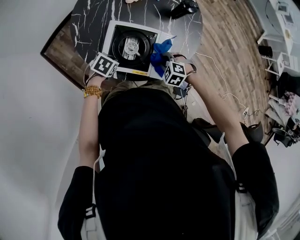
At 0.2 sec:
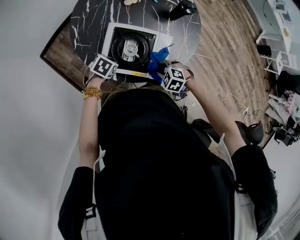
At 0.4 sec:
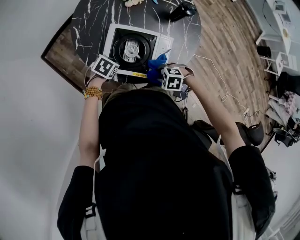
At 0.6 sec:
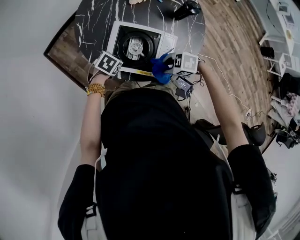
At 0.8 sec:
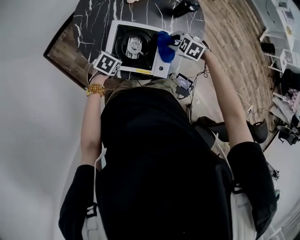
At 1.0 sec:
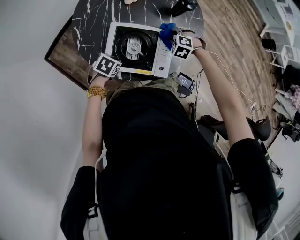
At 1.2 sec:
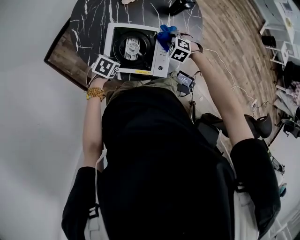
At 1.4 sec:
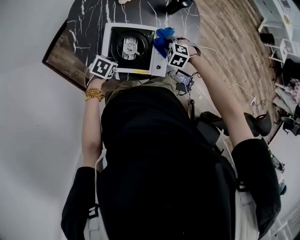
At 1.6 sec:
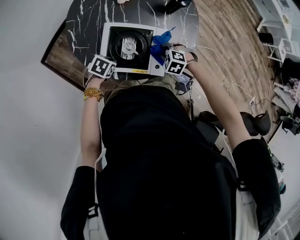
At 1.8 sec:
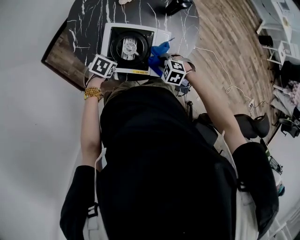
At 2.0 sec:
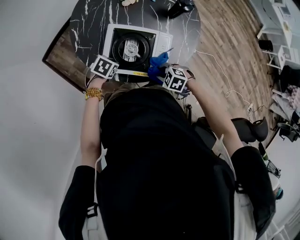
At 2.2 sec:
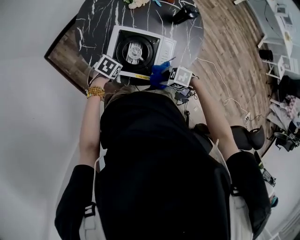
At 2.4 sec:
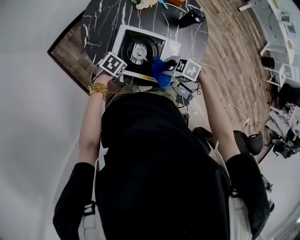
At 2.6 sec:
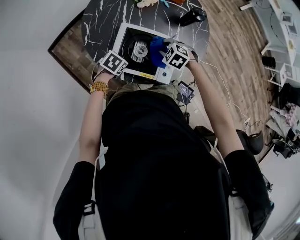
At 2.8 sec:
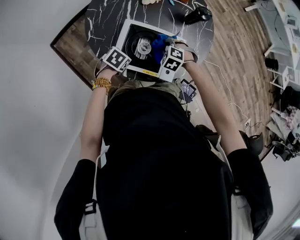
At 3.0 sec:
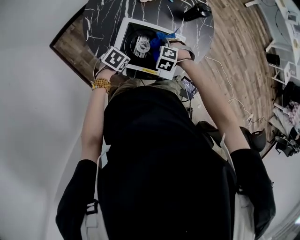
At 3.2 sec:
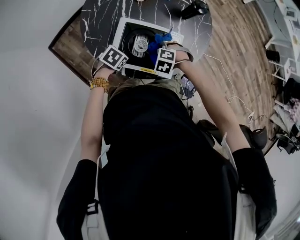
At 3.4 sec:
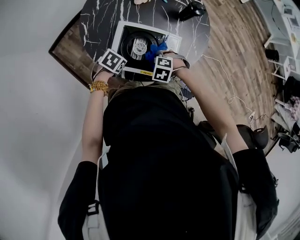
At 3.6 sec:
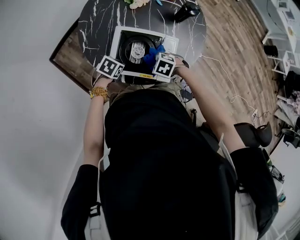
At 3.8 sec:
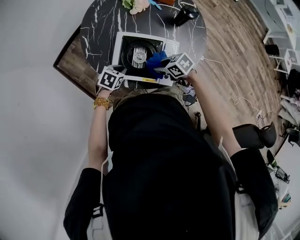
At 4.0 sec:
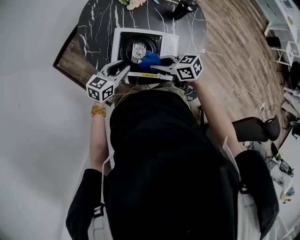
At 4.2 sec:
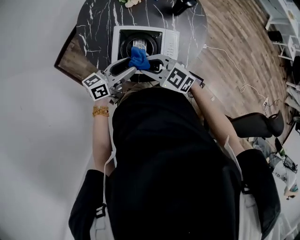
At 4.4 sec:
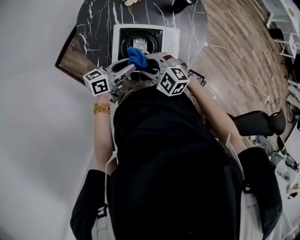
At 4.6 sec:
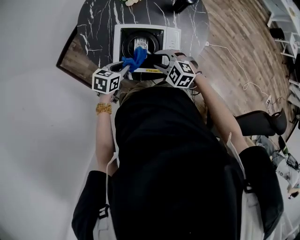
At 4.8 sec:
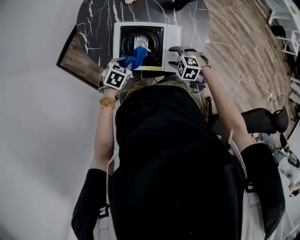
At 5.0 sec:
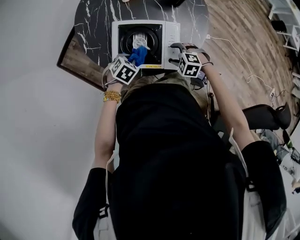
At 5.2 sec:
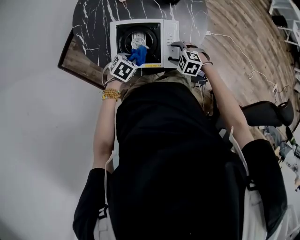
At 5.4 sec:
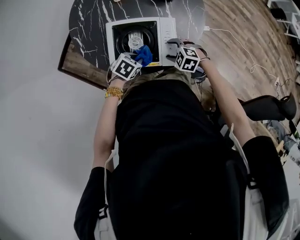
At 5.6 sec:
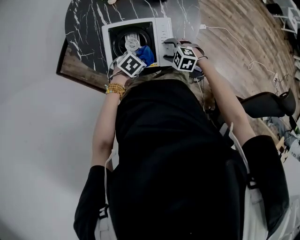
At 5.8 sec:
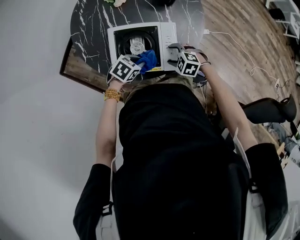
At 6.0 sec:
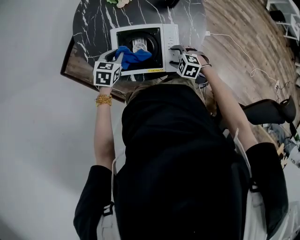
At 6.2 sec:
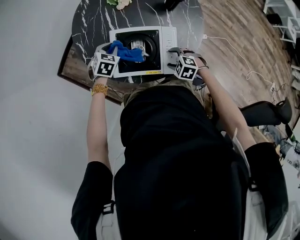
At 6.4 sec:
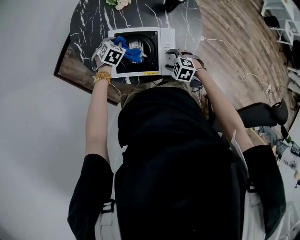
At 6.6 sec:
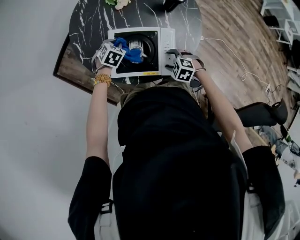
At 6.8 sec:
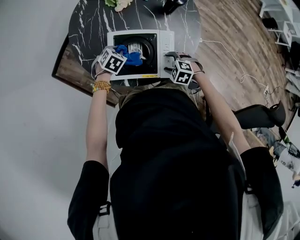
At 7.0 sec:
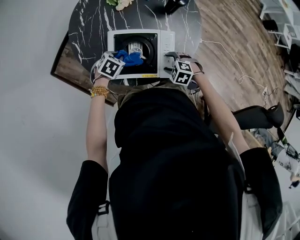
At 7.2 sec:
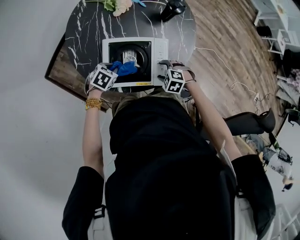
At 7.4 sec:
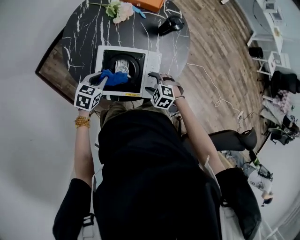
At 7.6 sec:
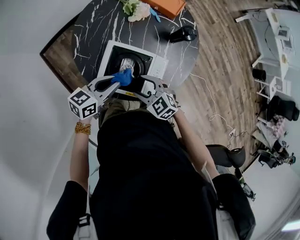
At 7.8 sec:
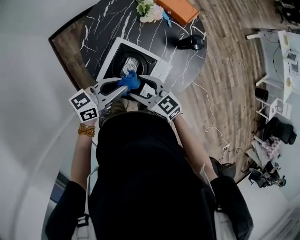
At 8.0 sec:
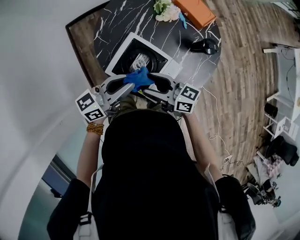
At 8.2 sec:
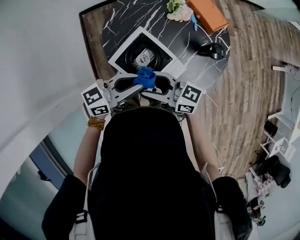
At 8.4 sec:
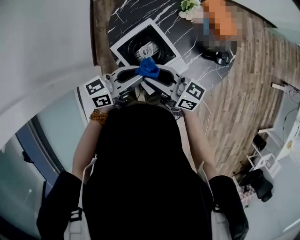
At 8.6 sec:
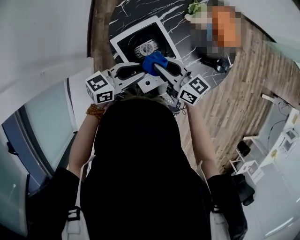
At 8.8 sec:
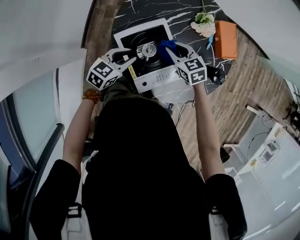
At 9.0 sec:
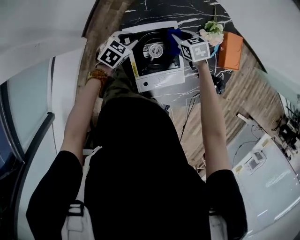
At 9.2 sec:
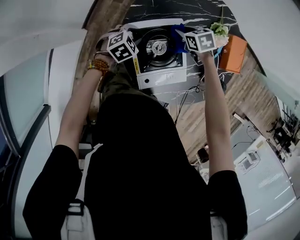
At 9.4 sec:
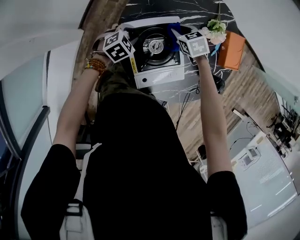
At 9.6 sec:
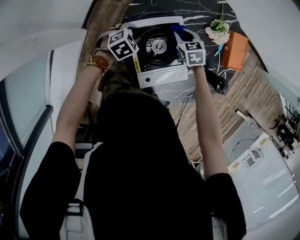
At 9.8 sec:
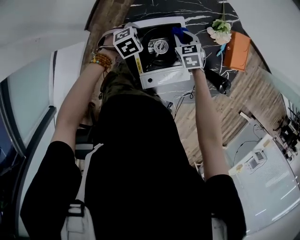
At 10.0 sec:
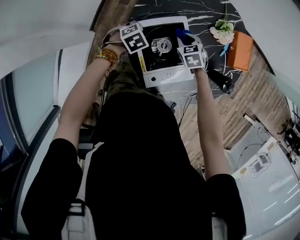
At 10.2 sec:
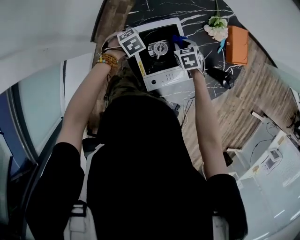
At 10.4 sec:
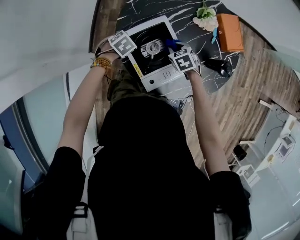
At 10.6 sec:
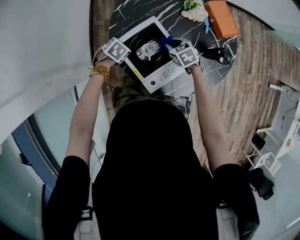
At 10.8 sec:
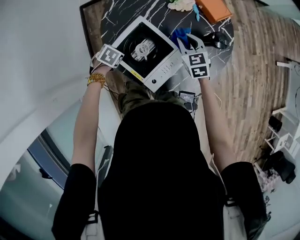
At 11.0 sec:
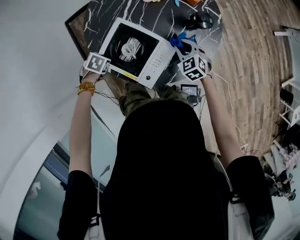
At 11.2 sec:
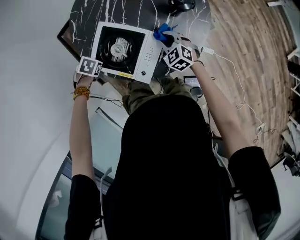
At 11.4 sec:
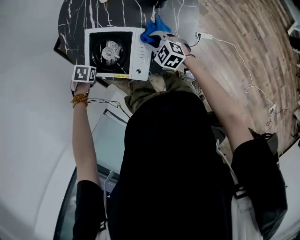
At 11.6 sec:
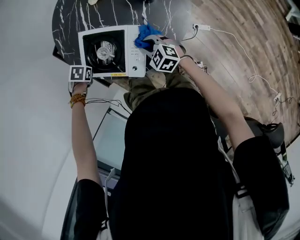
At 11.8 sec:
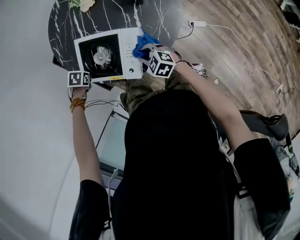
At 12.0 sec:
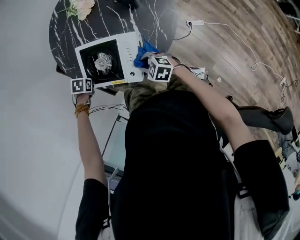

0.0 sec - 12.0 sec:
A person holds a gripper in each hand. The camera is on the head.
1.6 sec - 3.0 sec: The right gripper changes place by roughly 10 cm.
3.0 sec - 4.4 sec: Both grippers move upward, about 15 cm. The right gripper points its fingers about 40 degrees further upward; the left gripper points its fingers some 60 degrees further upward, and opens its fingers.
4.4 sec - 6.0 sec: The left gripper shifts by roughly 10 cm, and points its fingers about 40 degrees further downward. The right gripper shifts by approximately 20 cm, changes its angle by approximately 30 degrees, and opens up.
6.0 sec - 7.6 sec: Both grippers travel together upward, roughly 10 cm. The right gripper swivels roughly 20 degrees; the left gripper points its fingers roughly 30 degrees further upward.
7.6 sec - 9.0 sec: The right gripper moves roughly 20 cm, rotates approximately 40 degrees, and closes, while the left gripper travels downward by about 15 cm, and turns by roughly 60 degrees.
9.0 sec - 10.4 sec: The right gripper travels backward by about 10 cm; the left gripper turns by about 40 degrees.
10.4 sec - 12.0 sec: The left gripper changes its angle by roughly 30 degrees. Meanwhile the right gripper moves about 10 cm upward and comes back, and swivels roughly 30 degrees.

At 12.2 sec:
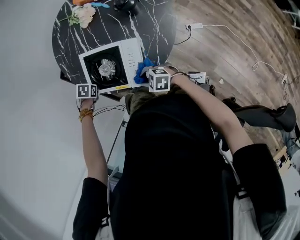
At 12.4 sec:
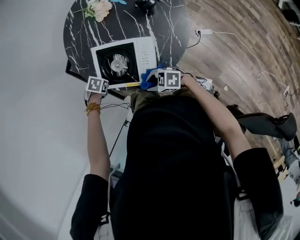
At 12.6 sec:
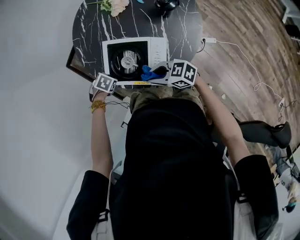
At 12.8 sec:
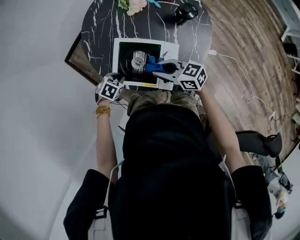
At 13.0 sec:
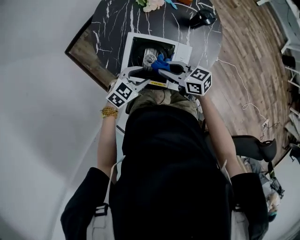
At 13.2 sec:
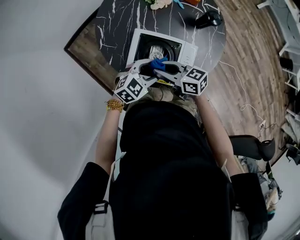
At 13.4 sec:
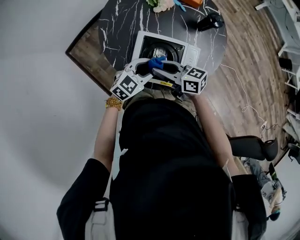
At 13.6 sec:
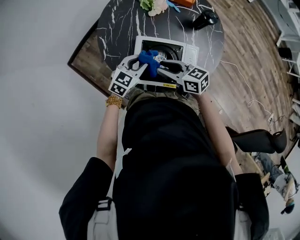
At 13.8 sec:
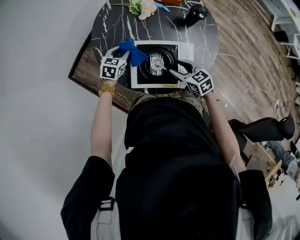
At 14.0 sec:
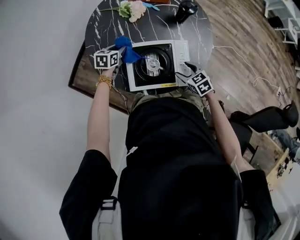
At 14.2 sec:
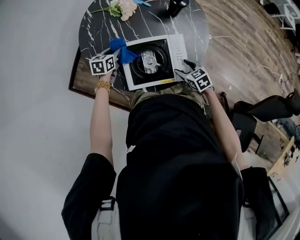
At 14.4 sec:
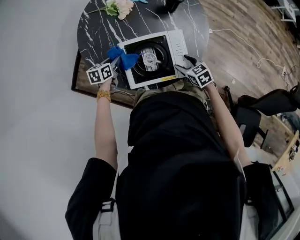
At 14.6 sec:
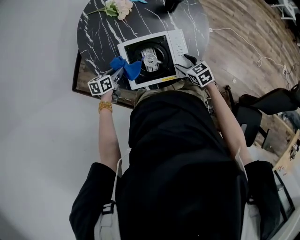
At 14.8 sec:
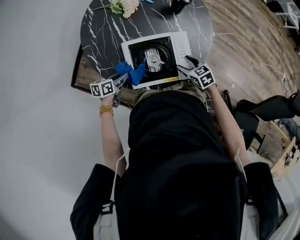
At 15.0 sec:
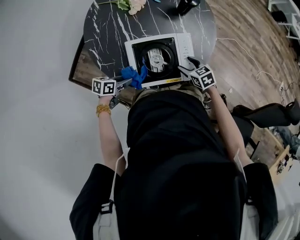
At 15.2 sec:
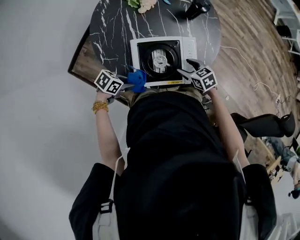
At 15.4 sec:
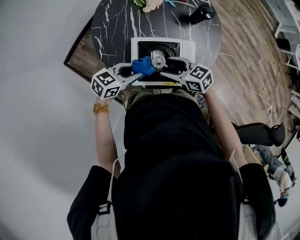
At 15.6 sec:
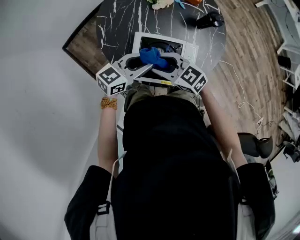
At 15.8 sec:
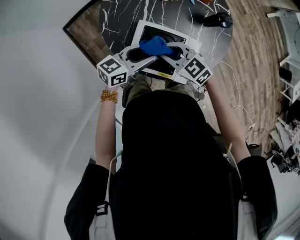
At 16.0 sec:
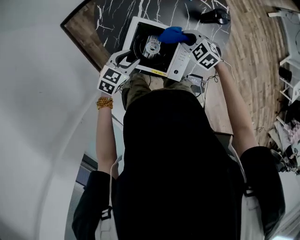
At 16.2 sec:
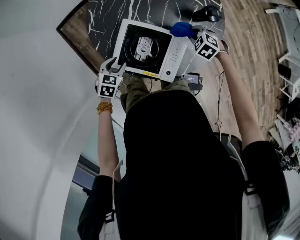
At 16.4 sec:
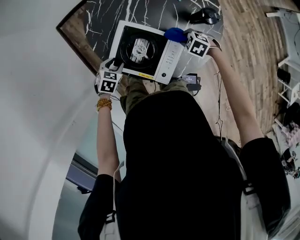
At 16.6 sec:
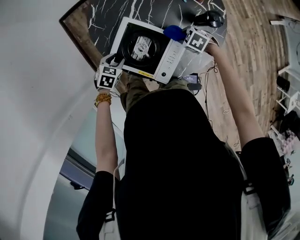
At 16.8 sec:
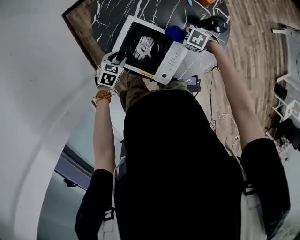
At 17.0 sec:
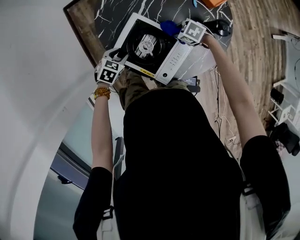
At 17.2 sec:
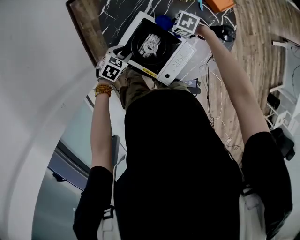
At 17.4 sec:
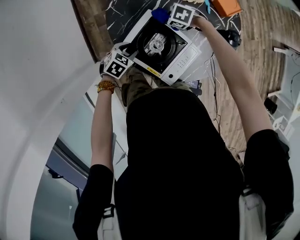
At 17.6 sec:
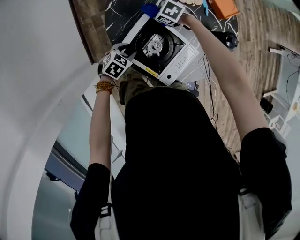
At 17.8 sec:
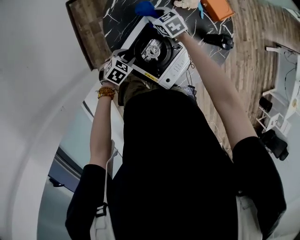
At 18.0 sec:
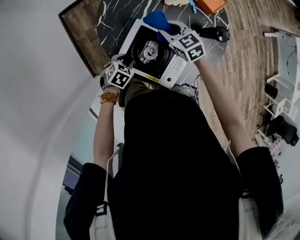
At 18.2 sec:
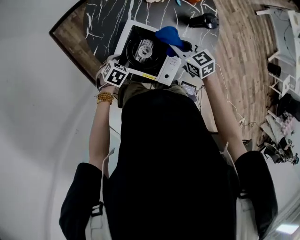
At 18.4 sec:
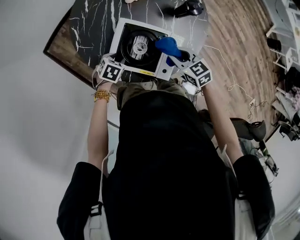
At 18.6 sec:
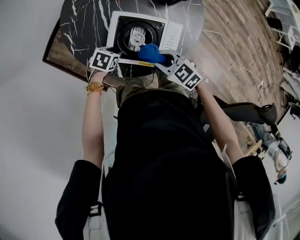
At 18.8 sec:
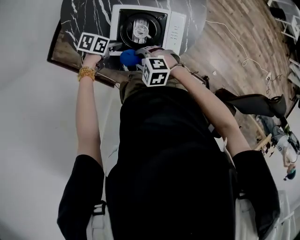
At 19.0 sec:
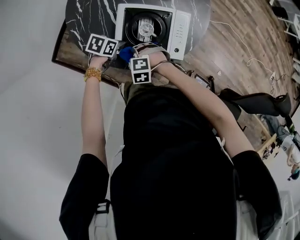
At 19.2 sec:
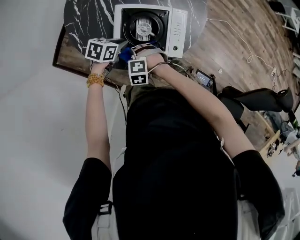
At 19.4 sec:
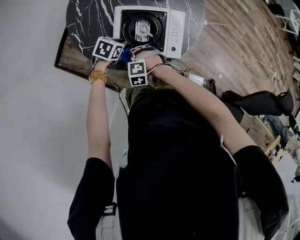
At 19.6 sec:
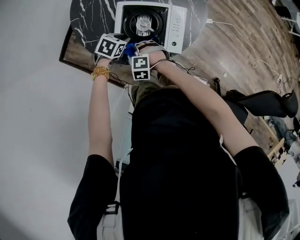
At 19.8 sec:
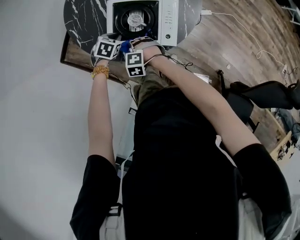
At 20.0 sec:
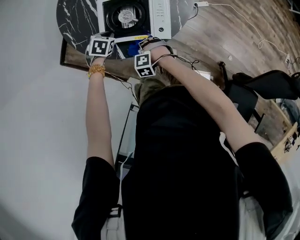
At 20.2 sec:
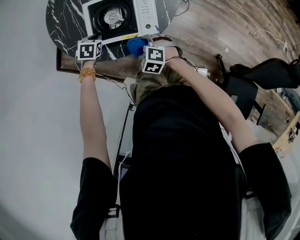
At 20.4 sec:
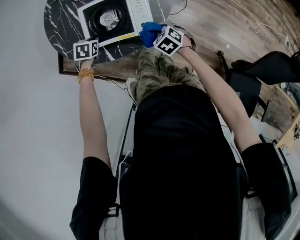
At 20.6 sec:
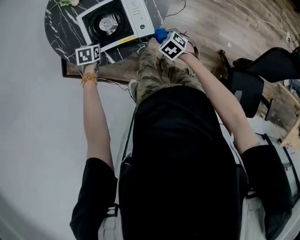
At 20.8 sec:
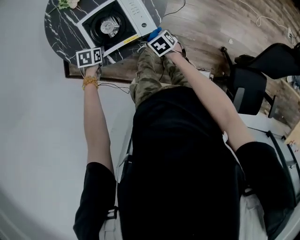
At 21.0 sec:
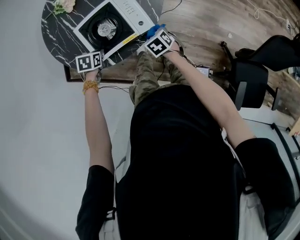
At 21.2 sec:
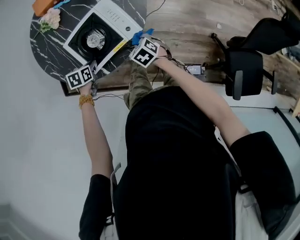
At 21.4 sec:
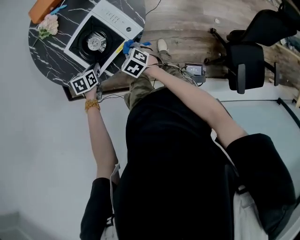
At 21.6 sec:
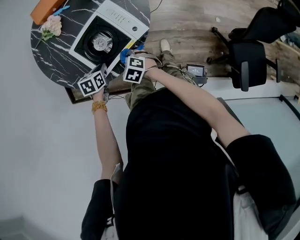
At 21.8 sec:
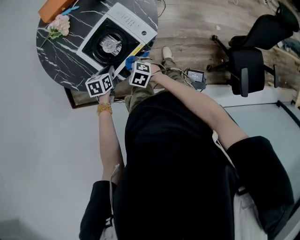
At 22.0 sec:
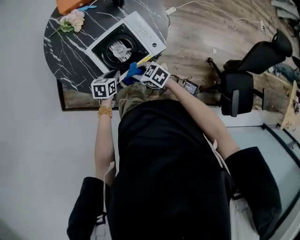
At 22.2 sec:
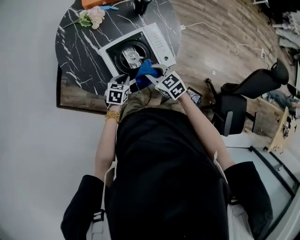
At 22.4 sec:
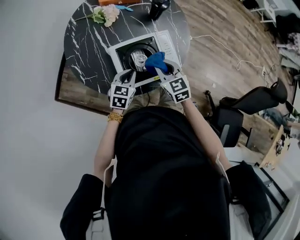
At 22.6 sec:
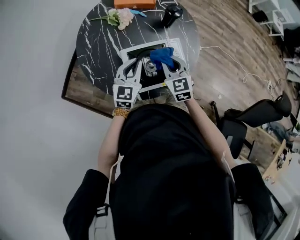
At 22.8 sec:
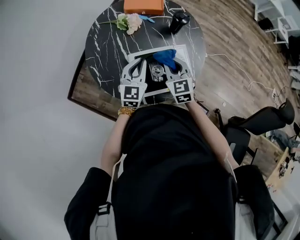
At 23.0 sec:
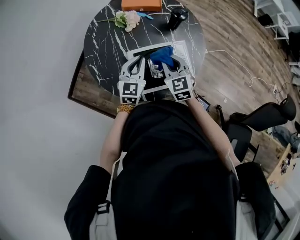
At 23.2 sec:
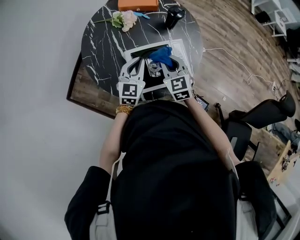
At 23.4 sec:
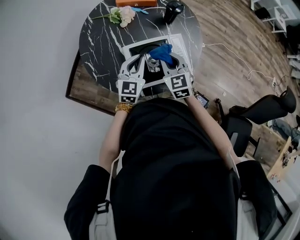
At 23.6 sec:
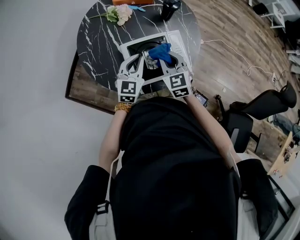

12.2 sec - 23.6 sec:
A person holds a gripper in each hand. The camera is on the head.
12.2 sec - 13.6 sec: The left gripper is displaced upward by roughly 10 cm, angles its fingers upward, by approximately 50 degrees, and opens and closes again. The right gripper moves some 25 cm, and swivels roughly 50 degrees.
13.6 sec - 15.0 sec: The right gripper ends up about 20 cm from where it was, angles its fingers downward, by roughly 30 degrees, and opens up. Meanwhile the left gripper is displaced downward by some 10 cm, and turns by about 50 degrees.
15.0 sec - 16.4 sec: The left gripper goes upward and returns, approximately 20 cm each way, turns by about 50 degrees, and opens up. The right gripper goes upward and returns, roughly 15 cm each way, twists about 60 degrees counterclockwise, seen from behind, and closes its fingers.
16.4 sec - 17.8 sec: The right gripper changes place by roughly 30 cm, and changes its angle by about 30 degrees.
17.8 sec - 19.4 sec: The left gripper changes its angle by roughly 30 degrees, and closes, while the right gripper shifts by some 30 cm, and turns by roughly 40 degrees.
19.4 sec - 20.8 sec: The right gripper moves approximately 25 cm, and rotates around the line of its fingers by about 80 degrees, clockwise from behind, while the left gripper shifts by approximately 5 cm.
20.8 sec - 22.2 sec: The left gripper swivels some 20 degrees. Meanwhile the right gripper changes place by about 20 cm, and changes its angle by roughly 30 degrees.
22.2 sec - 23.6 sec: The left gripper travels upward and forward by approximately 20 cm, and angles its fingers upward, by about 30 degrees. Meanwhile the right gripper heads forward and upward, covering some 10 cm, and turns by some 30 degrees.
